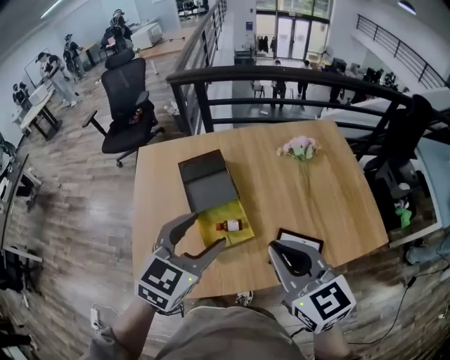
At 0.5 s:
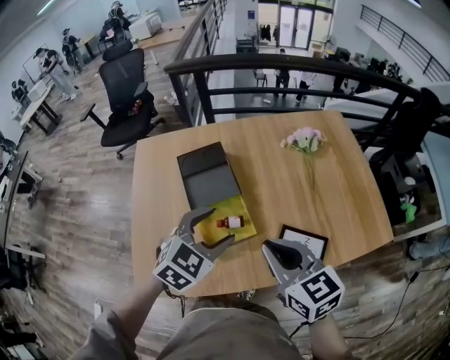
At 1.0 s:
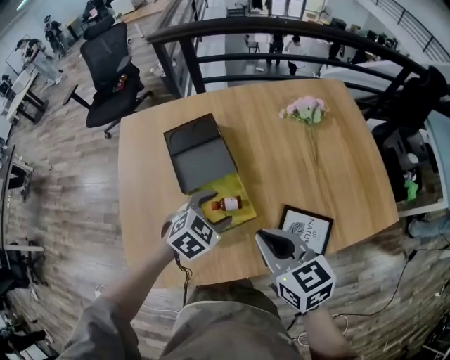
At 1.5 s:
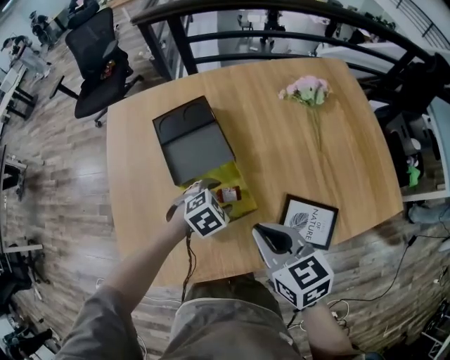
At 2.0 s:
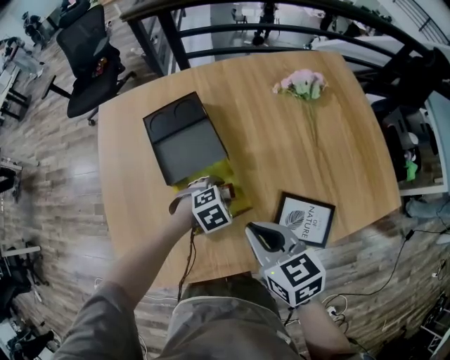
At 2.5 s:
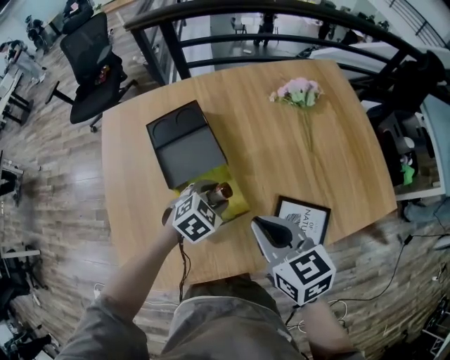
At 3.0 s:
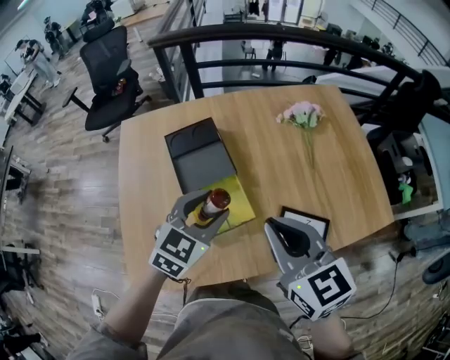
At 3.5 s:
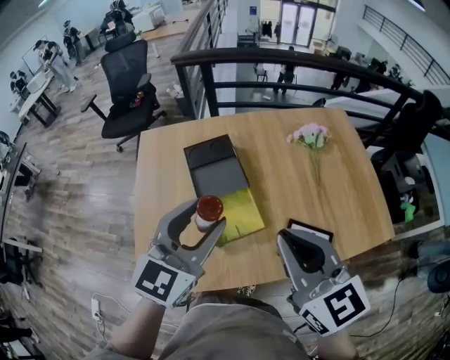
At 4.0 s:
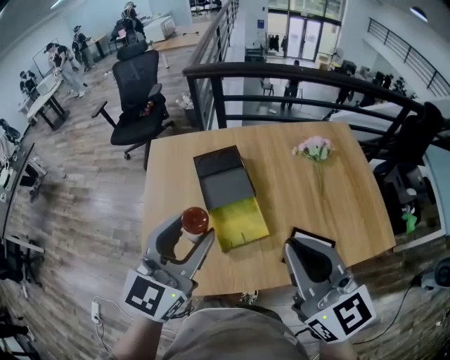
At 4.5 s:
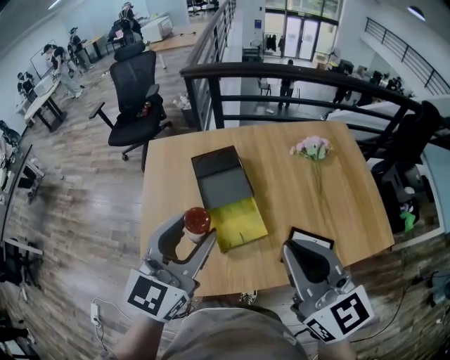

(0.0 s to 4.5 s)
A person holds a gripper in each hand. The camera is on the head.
0.0 s - 2.0 s: The left gripper shifts about 35 cm downward, and tilts its fingers some 50 degrees downward; the right gripper moves downward, about 20 cm, and changes its angle by approximately 30 degrees.
2.0 s - 4.5 s: The right gripper heads upward, covering about 25 cm, and rotates some 30 degrees. Meanwhile the left gripper moves upward, approximately 40 cm, and points its fingers about 70 degrees further upward.

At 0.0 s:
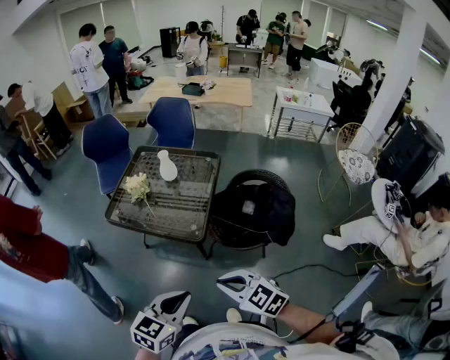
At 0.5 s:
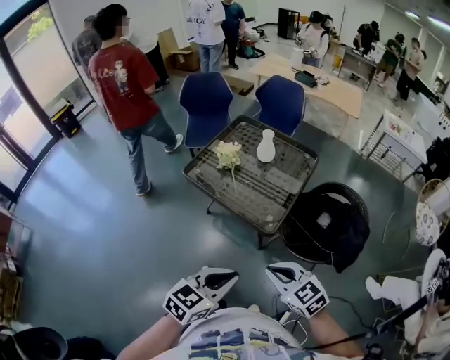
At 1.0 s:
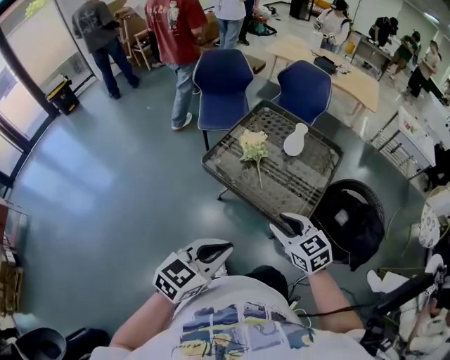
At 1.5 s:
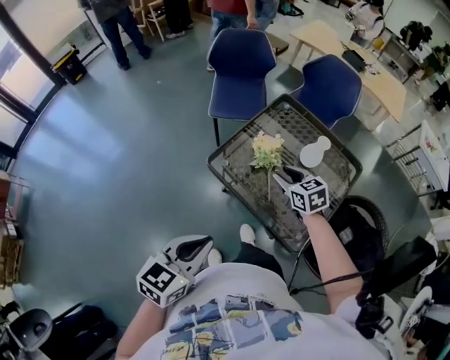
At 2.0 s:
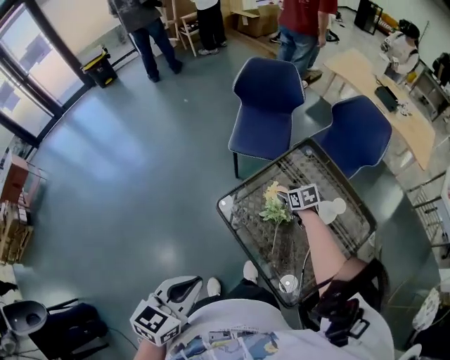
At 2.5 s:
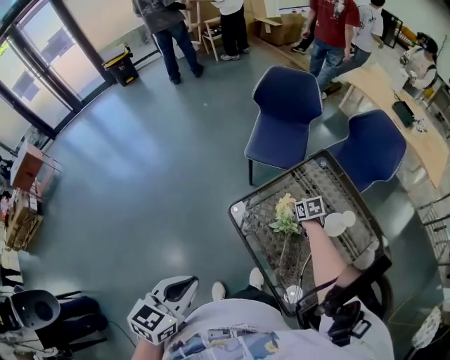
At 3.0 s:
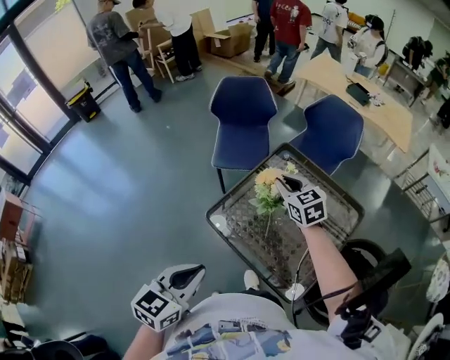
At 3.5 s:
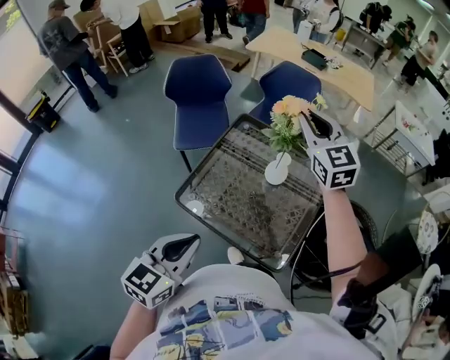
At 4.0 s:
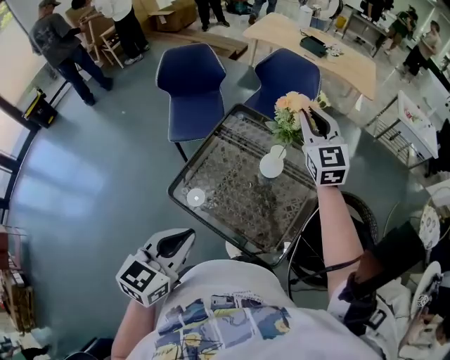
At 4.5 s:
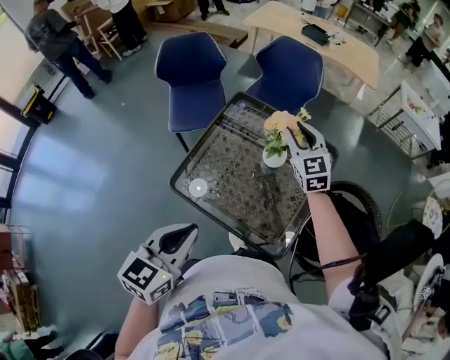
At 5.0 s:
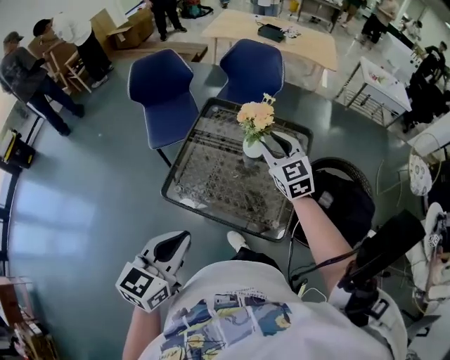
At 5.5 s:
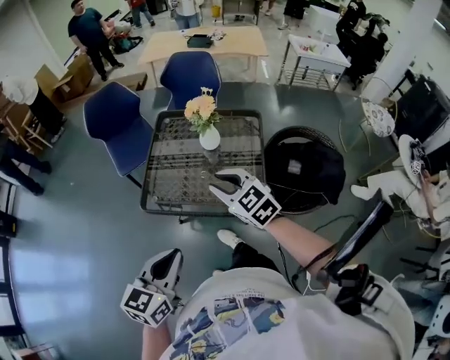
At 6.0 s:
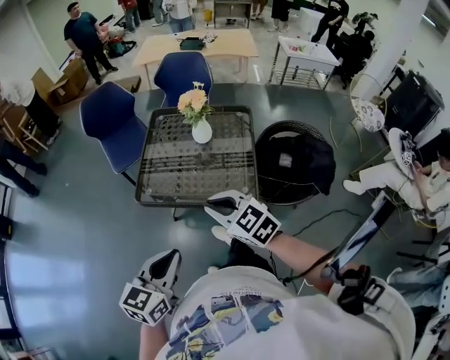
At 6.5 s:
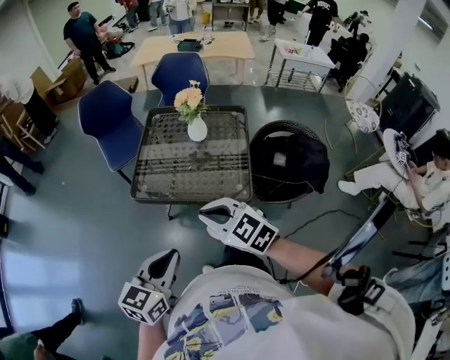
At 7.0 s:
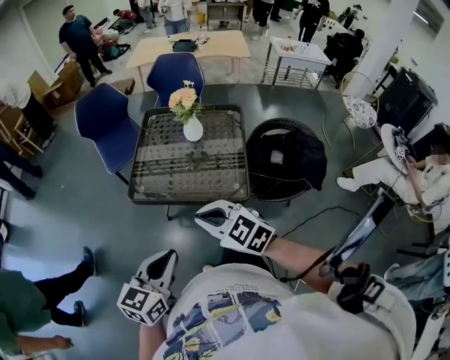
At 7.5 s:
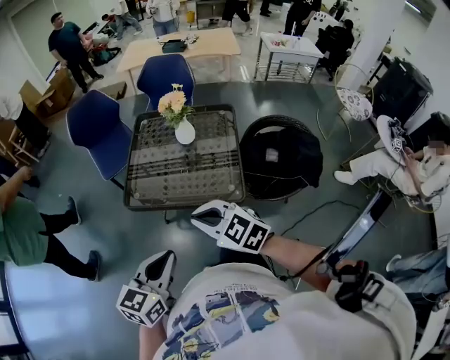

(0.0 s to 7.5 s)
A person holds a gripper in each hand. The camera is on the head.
0.0 s - 2.0 s: Both grippers are carried roughly 60 cm. The left gripper turns by approximately 40 degrees. Meanwhile the right gripper swivels roughly 30 degrees, and opens.
2.0 s - 4.0 s: The right gripper shifts roughly 35 cm upward, points its fingers some 50 degrees further upward, and closes; the left gripper shifts by roughly 15 cm, and swivels roughly 30 degrees.
4.0 s - 5.5 s: The left gripper goes about 20 cm backward, while the right gripper moves backward, roughly 35 cm, and turns by about 20 degrees.
5.5 s - 7.5 s: The right gripper heads backward, covering roughly 15 cm, and closes its fingers; the left gripper heads backward, covering about 5 cm.

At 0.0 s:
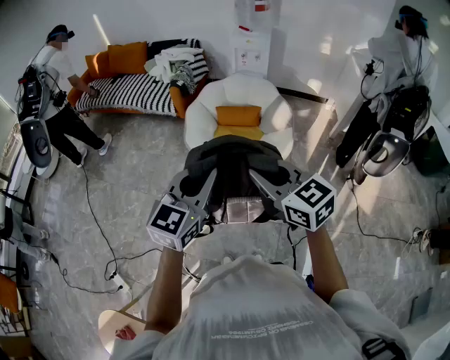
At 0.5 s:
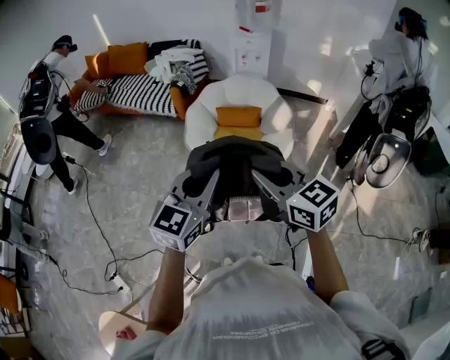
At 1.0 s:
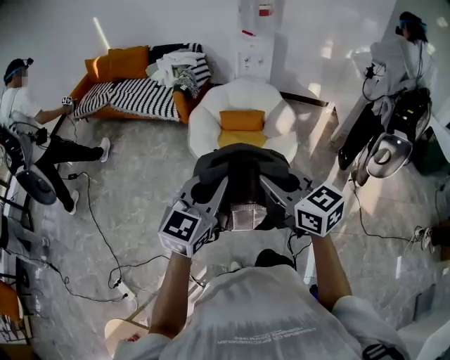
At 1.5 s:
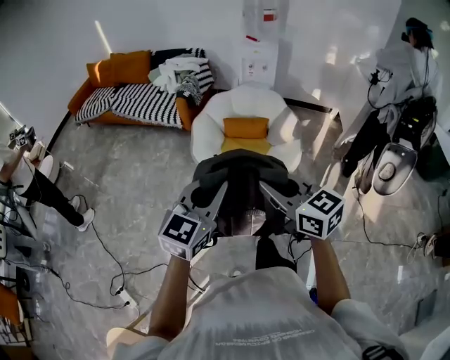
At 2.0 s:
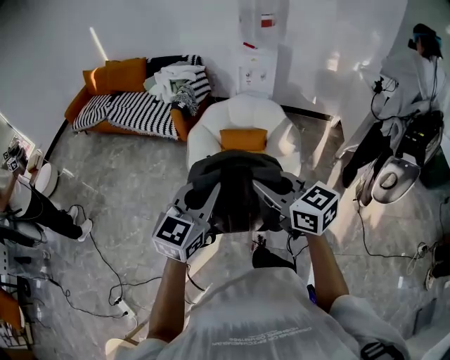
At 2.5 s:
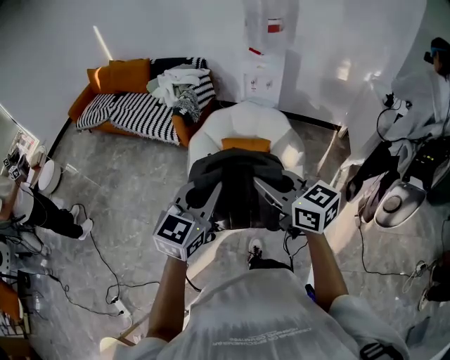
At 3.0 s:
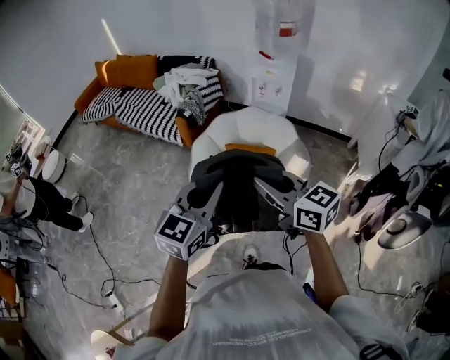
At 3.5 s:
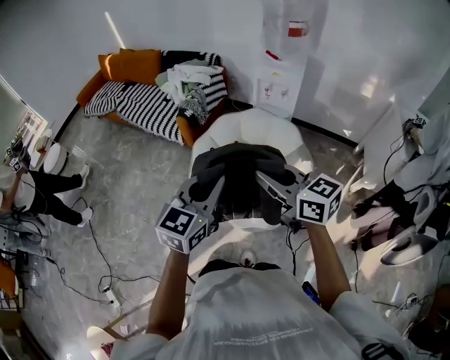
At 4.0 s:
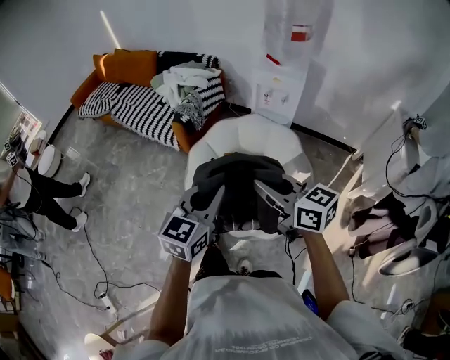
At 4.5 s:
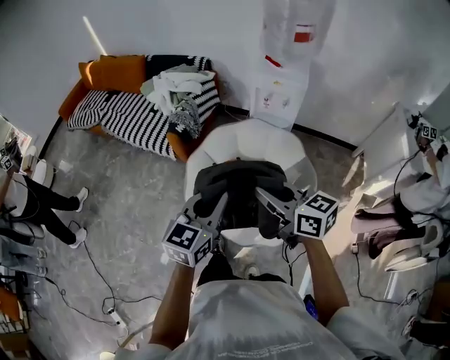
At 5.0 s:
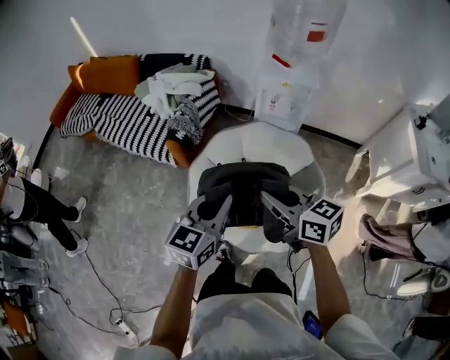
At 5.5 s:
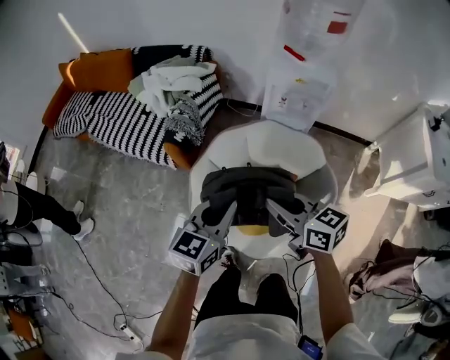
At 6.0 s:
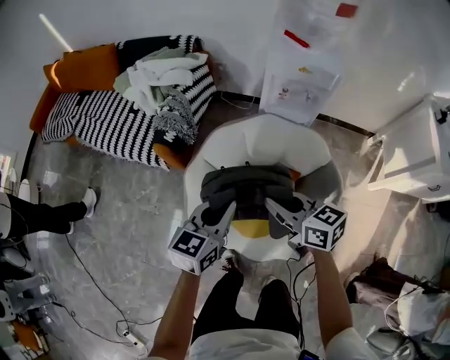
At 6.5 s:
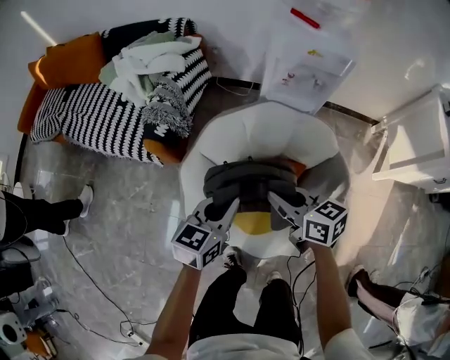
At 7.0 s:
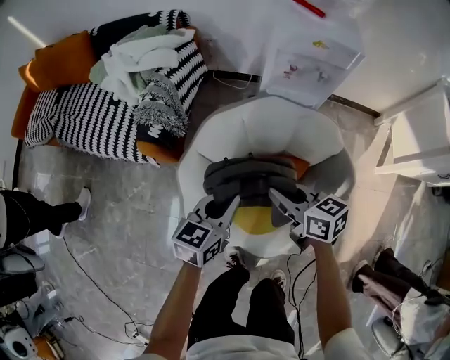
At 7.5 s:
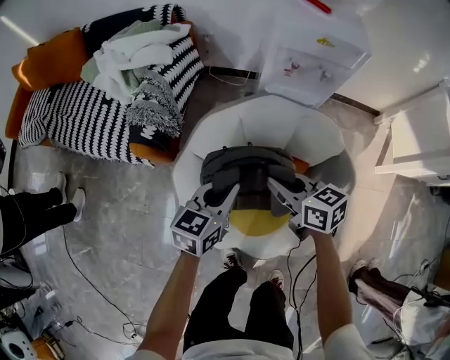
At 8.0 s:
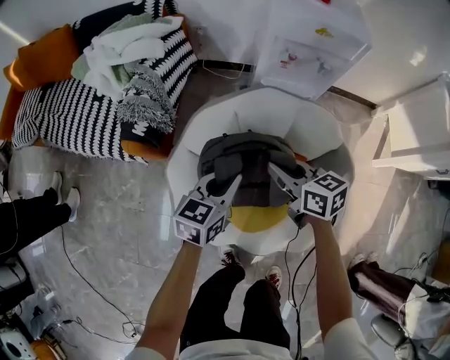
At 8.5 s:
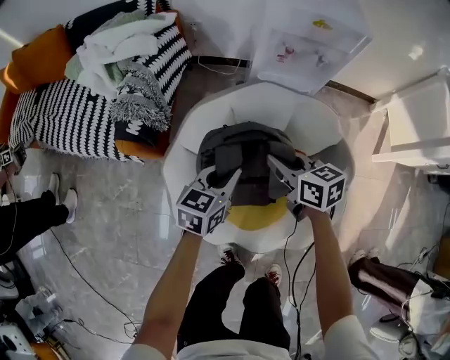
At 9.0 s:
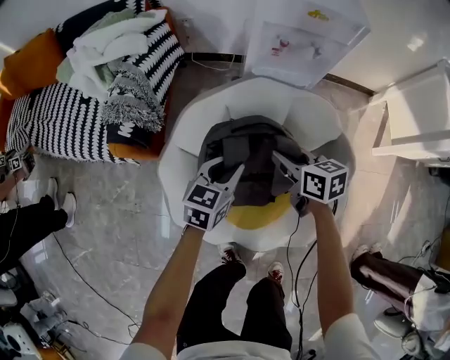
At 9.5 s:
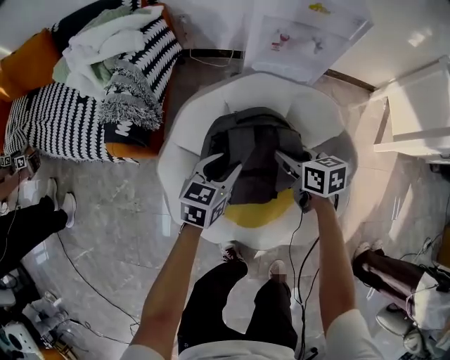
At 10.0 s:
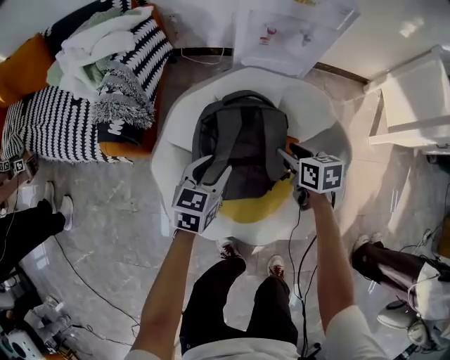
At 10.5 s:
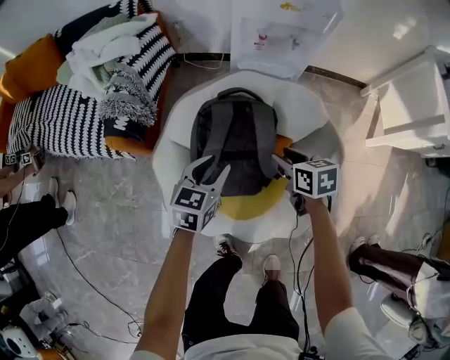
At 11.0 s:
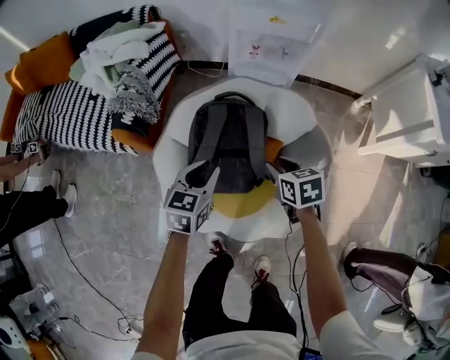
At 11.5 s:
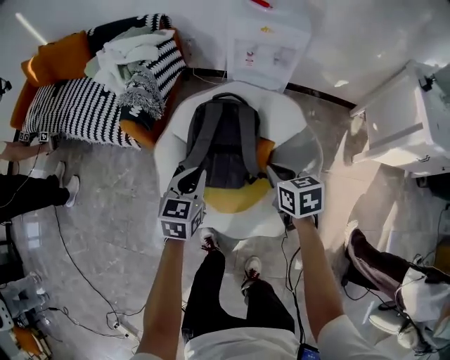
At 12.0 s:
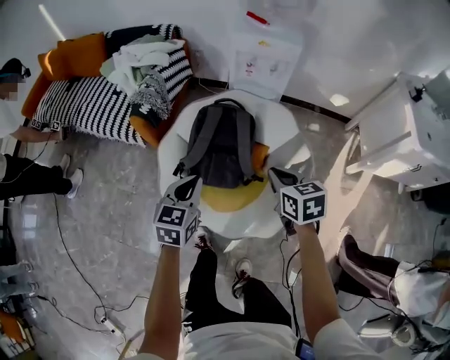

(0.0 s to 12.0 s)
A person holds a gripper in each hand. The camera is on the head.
0.0 s - 2.0 s: The grippers both shift forward by approximately 15 cm.
2.0 s - 4.0 s: The two grippers go about 30 cm forward and to the right.
4.0 s - 6.0 s: Both grippers travel together forward and downward, some 35 cm.
6.0 s - 8.0 s: The two grippers go roughly 20 cm downward and forward.
8.0 s - 10.0 s: The left gripper heads downward, covering some 5 cm, and opens up; the right gripper travels downward and to the right by about 15 cm, rotates approximately 30 degrees, and opens its fingers.
10.0 s - 12.0 s: The left gripper shifts about 30 cm backward and upward, and closes up; the right gripper heads upward and backward, covering approximately 30 cm, and closes up.

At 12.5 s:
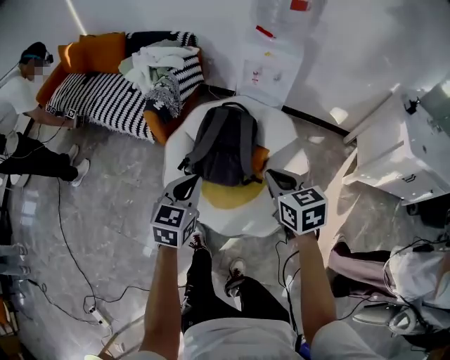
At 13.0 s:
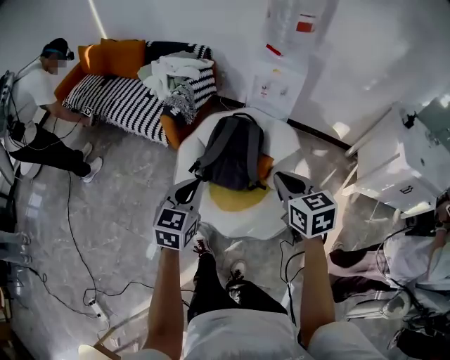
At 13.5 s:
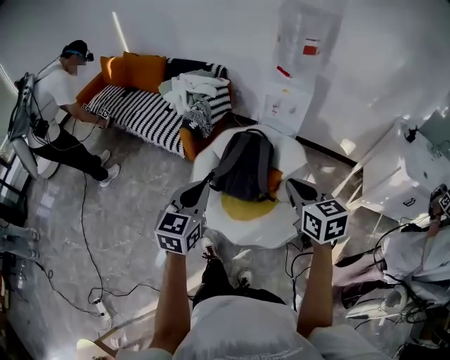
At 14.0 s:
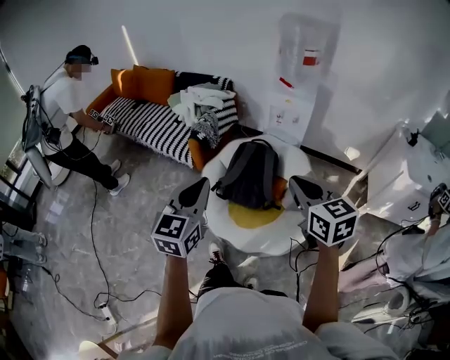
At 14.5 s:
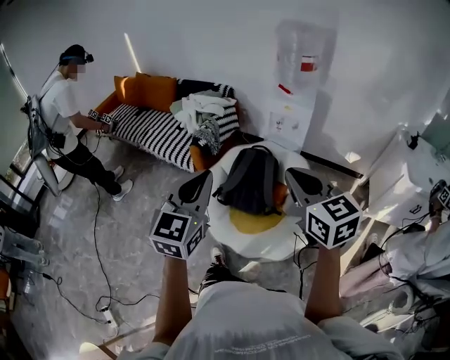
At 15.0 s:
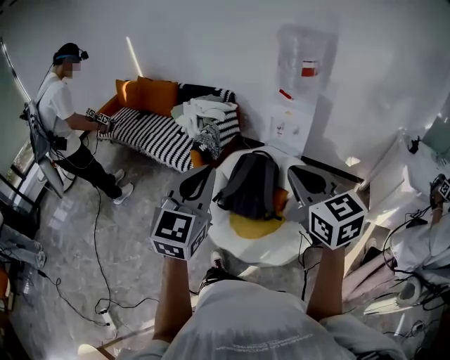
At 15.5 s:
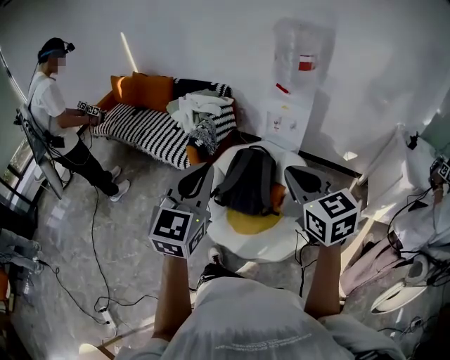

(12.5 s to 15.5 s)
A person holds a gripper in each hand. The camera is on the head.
12.5 s - 14.0 s: Both grippers travel together upward and backward, roughly 25 cm.
14.0 s - 15.5 s: The right gripper travels upward by about 5 cm. The left gripper moves upward, roughly 10 cm.
